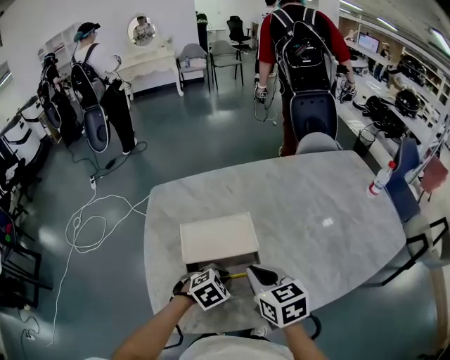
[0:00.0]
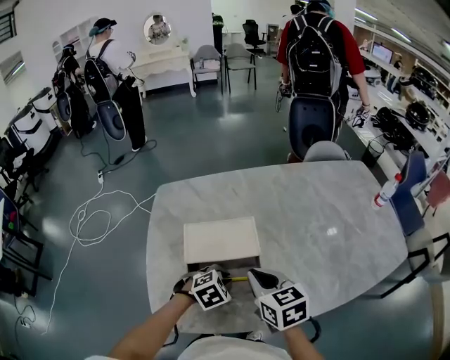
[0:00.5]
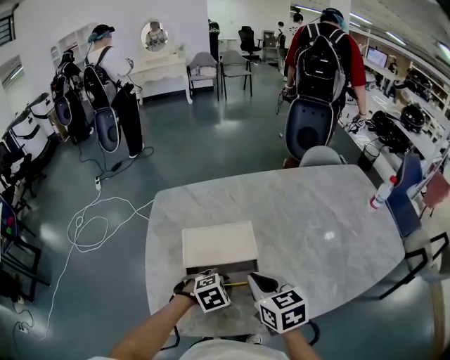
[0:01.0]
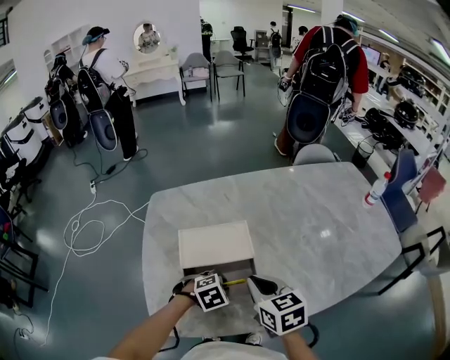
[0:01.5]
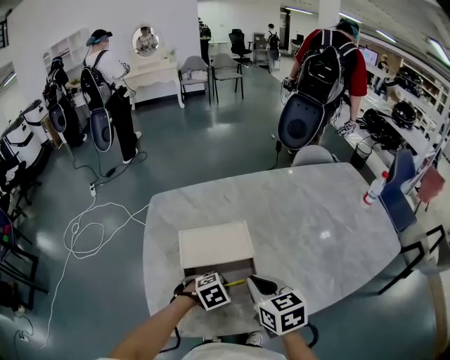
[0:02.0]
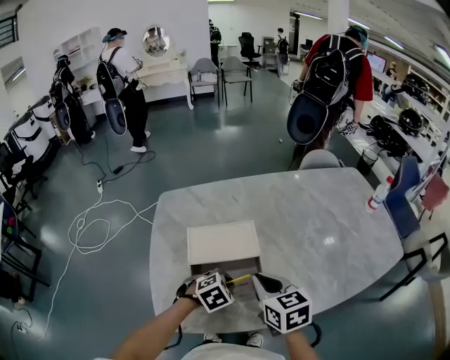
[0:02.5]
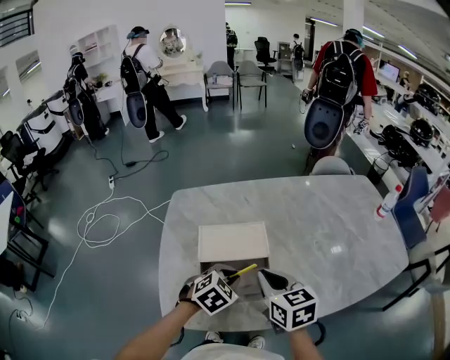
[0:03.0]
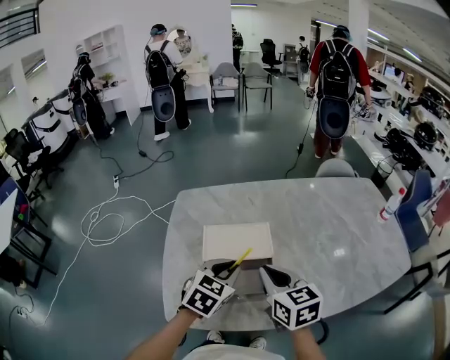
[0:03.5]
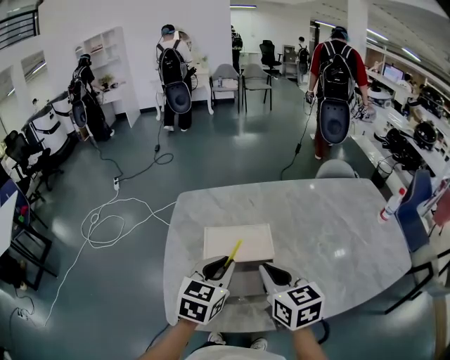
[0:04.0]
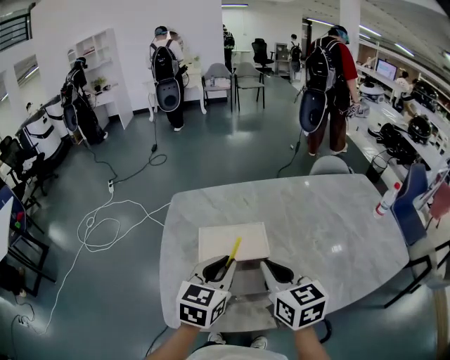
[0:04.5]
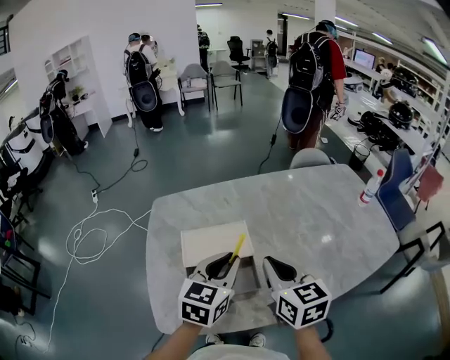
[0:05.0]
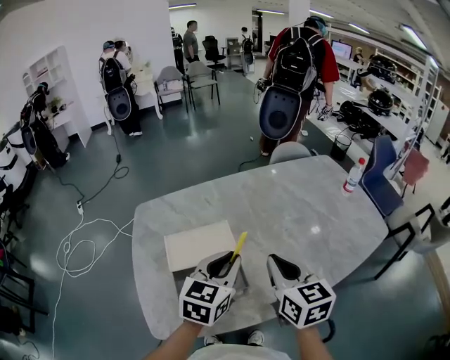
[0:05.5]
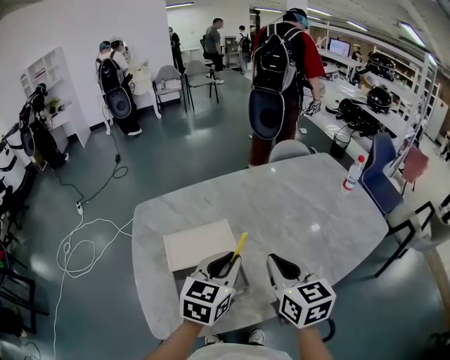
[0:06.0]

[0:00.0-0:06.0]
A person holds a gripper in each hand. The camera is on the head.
0:00.0 to 0:02.0: There are only small adjustments of the grippers.
0:02.0 to 0:04.0: The right gripper goes roughly 5 cm upward, while the left gripper goes about 20 cm upward, and tips its fingers upward by approximately 40 degrees.
0:04.0 to 0:06.0: The grippers both shift to the right by roughly 10 cm.

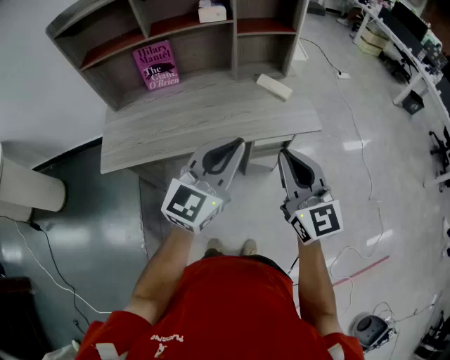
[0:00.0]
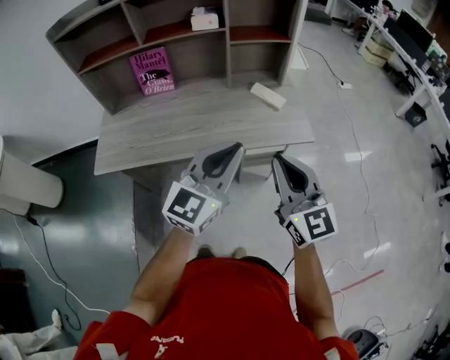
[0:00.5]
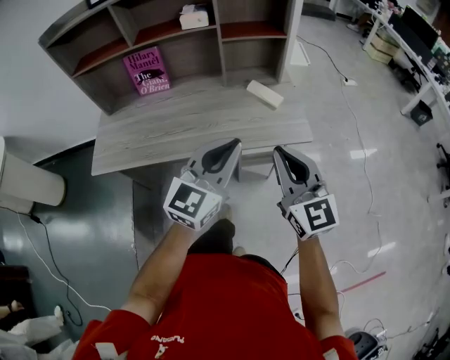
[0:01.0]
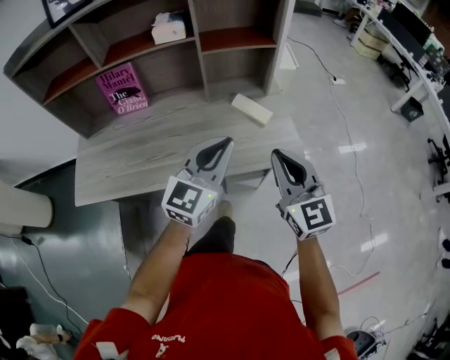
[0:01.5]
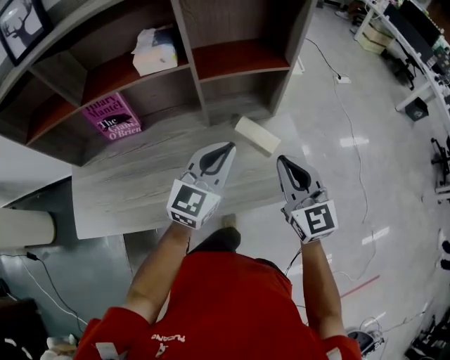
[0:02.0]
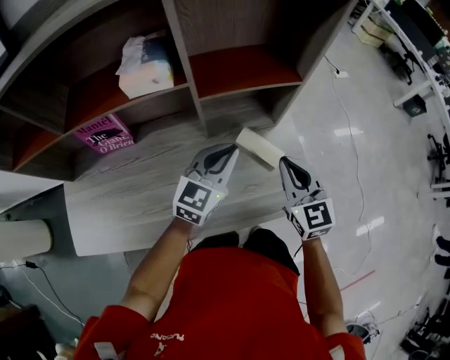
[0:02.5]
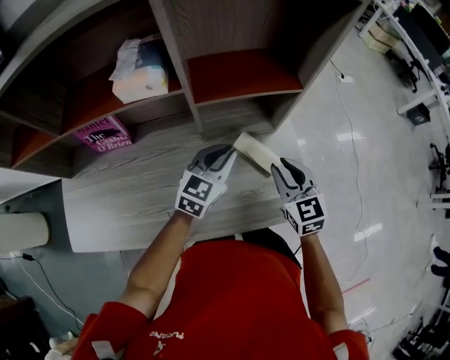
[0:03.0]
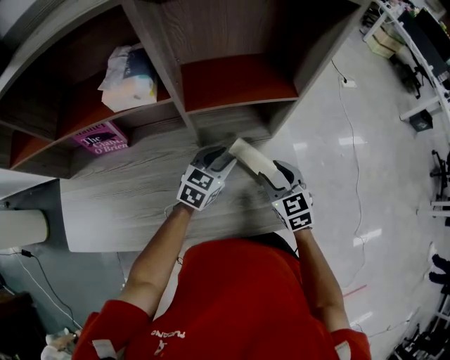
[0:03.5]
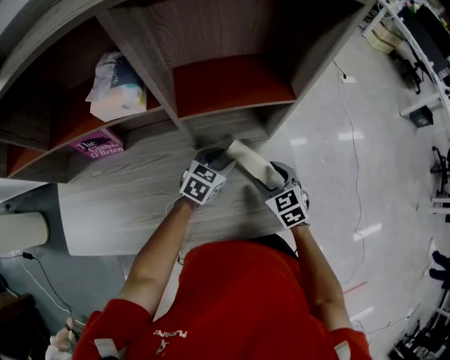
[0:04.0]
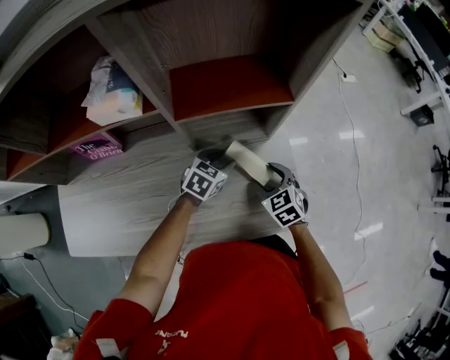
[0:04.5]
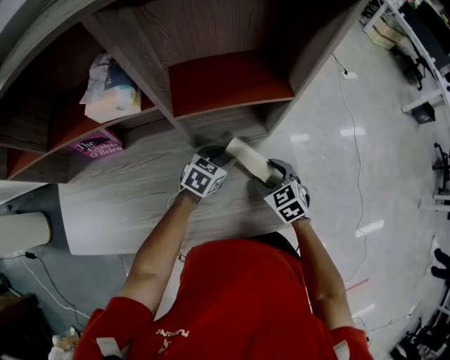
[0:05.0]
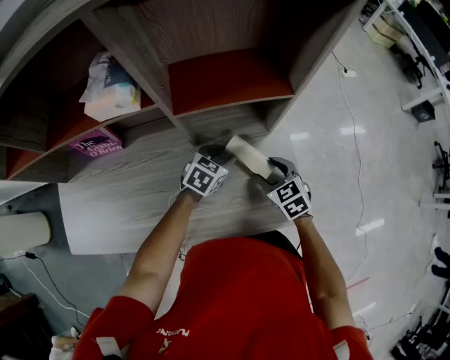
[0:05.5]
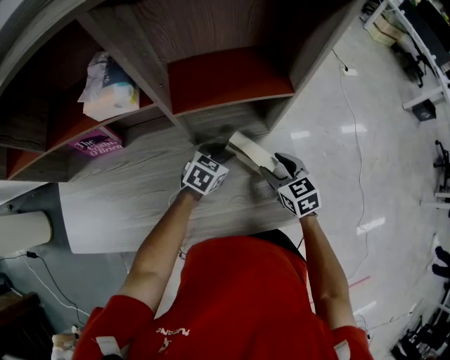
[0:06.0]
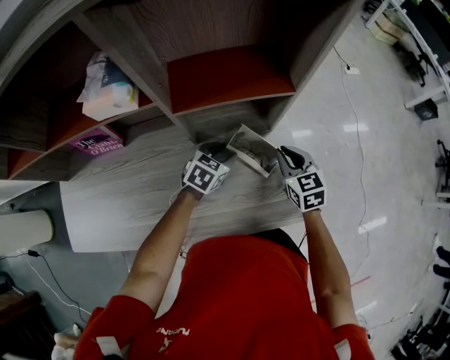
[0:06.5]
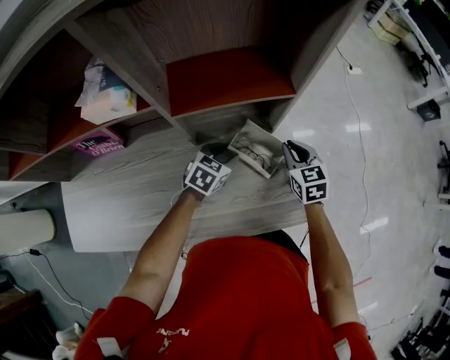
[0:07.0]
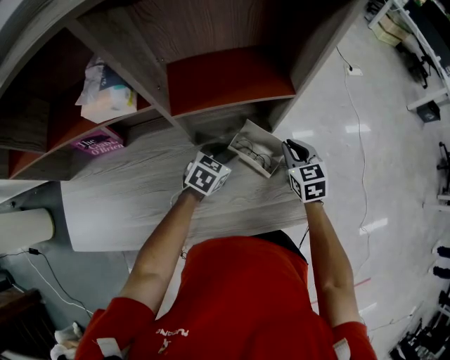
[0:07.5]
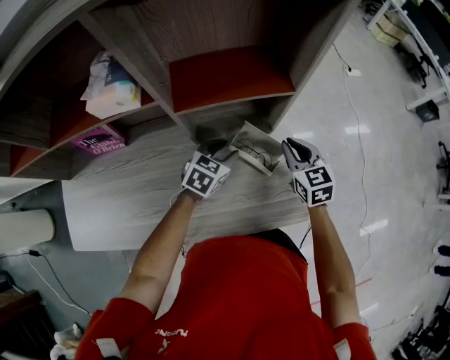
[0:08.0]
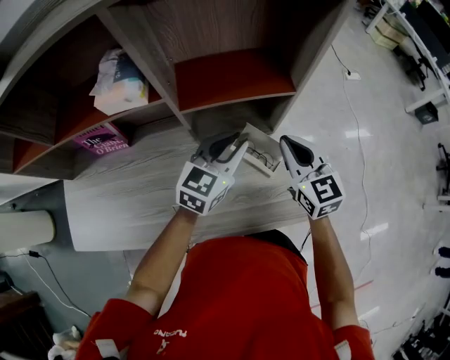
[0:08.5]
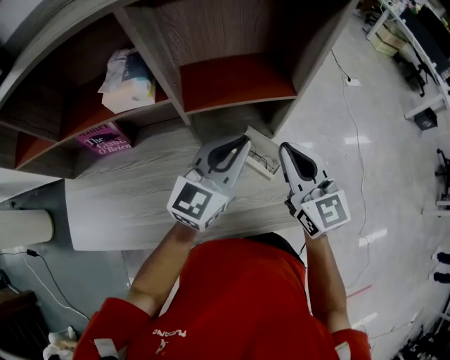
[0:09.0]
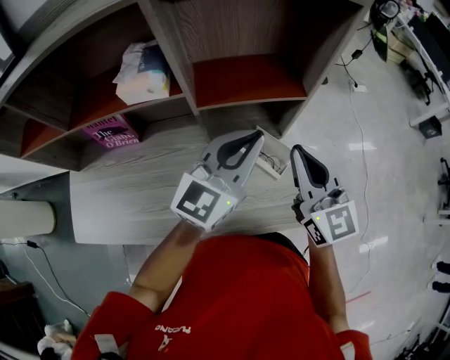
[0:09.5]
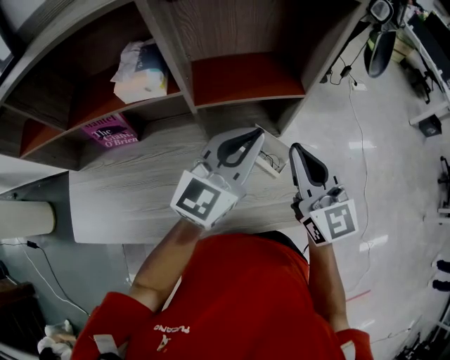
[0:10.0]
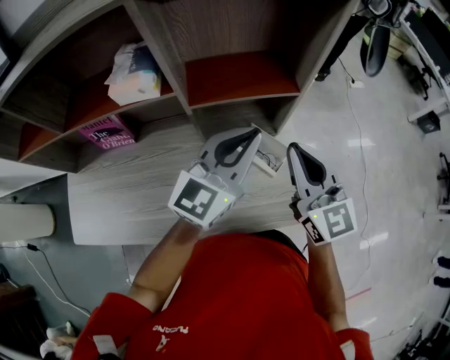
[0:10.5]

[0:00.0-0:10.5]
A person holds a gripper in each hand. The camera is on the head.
0:00.0 to 0:02.0: Both grippers travel together forward, roughly 30 cm.
0:02.0 to 0:04.0: The two grippers go roughly 25 cm downward and forward. The right gripper angles its fingers downward, by approximately 30 degrees, and opens up. The left gripper points its fingers roughly 40 degrees further downward, and opens up.
0:04.0 to 0:06.5: The right gripper goes approximately 5 cm forward, and closes.
0:06.5 to 0:08.5: The two grippers go approximately 15 cm upward. The left gripper changes its angle by about 30 degrees.
0:08.5 to 0:10.5: The right gripper goes approximately 10 cm upward and backward; the left gripper travels upward by about 10 cm.

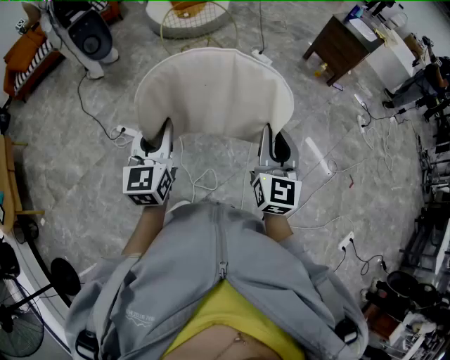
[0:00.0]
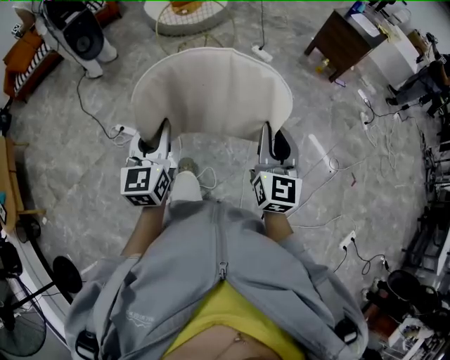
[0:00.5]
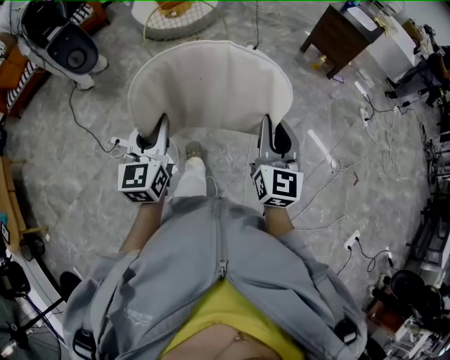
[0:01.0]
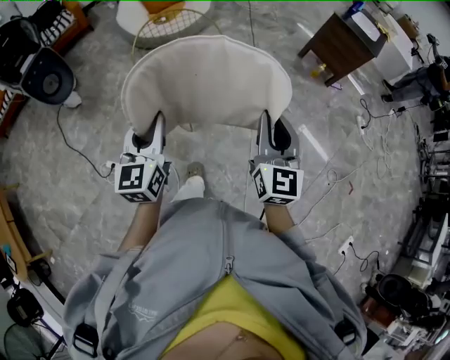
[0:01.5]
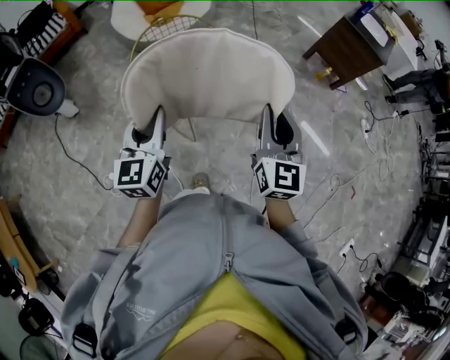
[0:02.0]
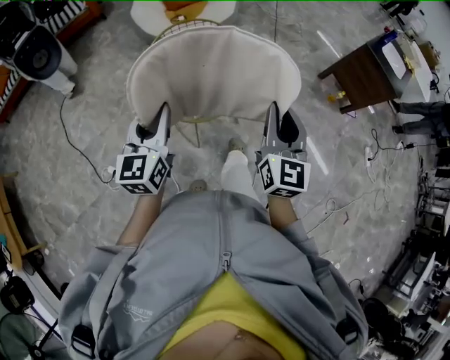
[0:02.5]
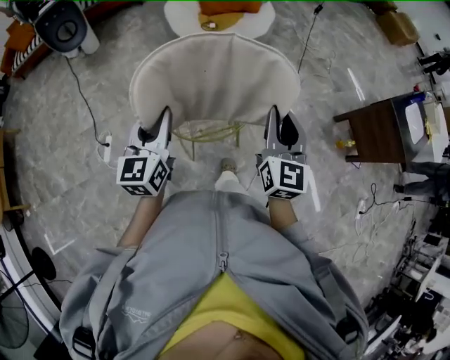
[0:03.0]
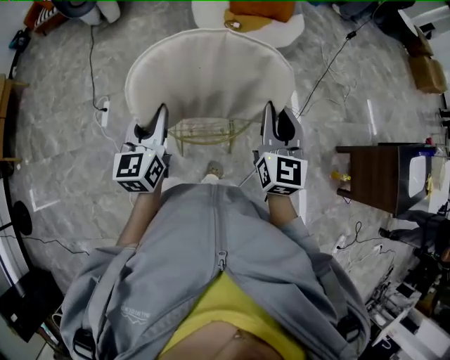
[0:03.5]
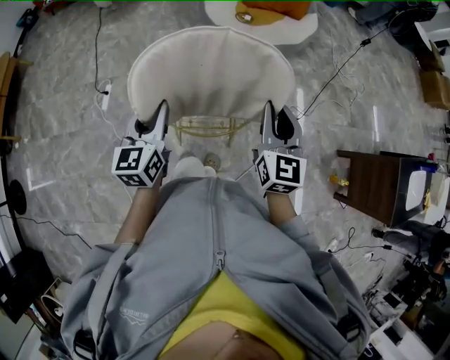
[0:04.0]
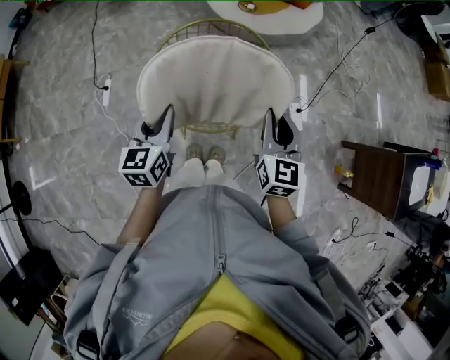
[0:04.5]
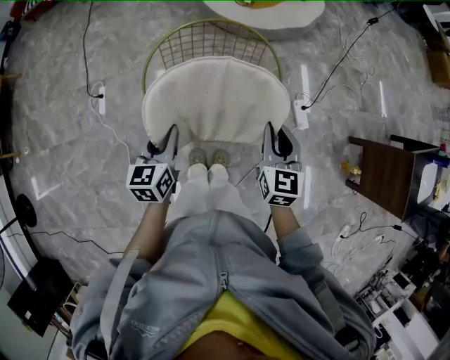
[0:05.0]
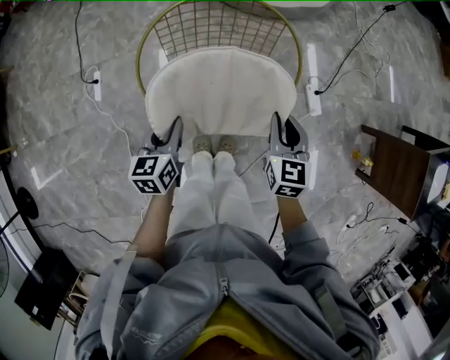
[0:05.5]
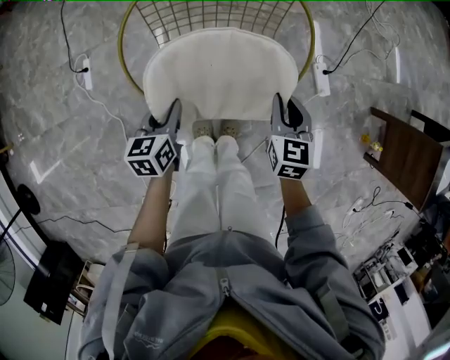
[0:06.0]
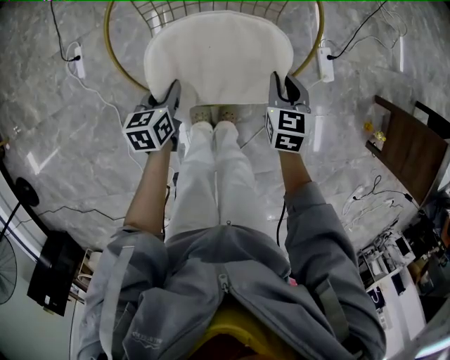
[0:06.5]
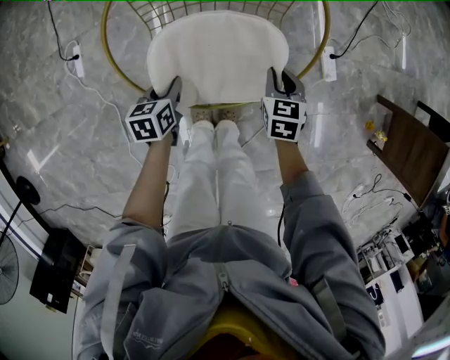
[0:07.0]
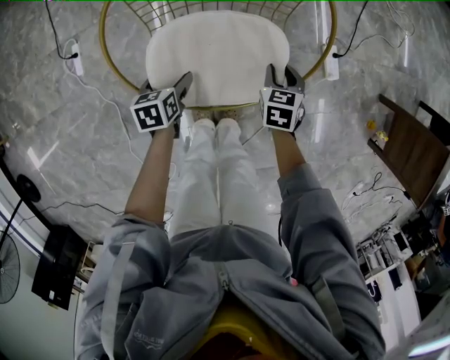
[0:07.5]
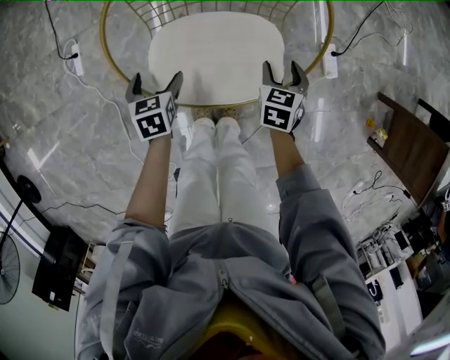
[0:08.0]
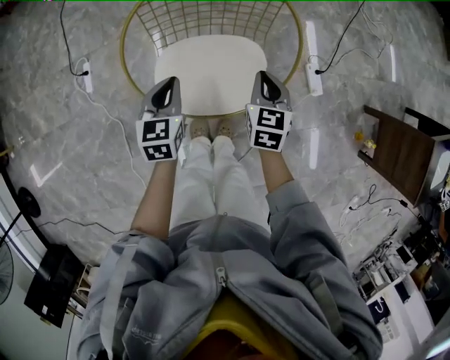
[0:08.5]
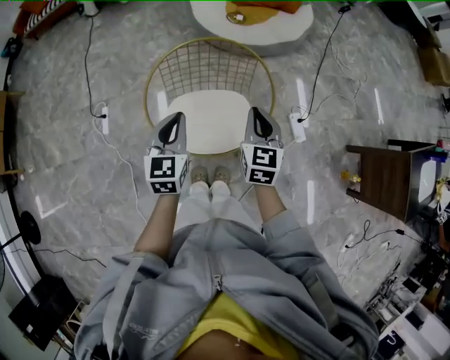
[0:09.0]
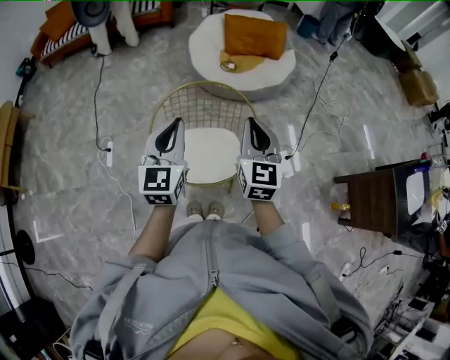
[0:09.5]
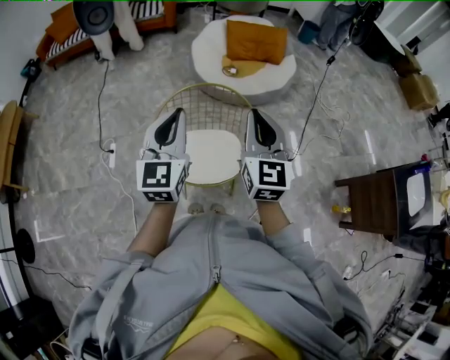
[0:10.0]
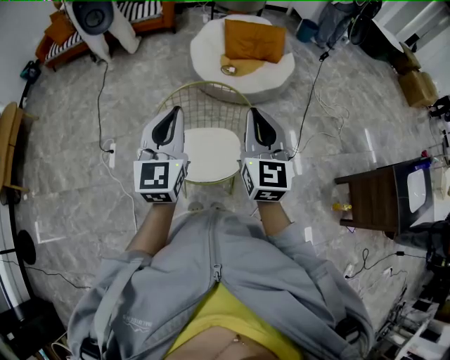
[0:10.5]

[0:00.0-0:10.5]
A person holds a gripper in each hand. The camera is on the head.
0:00.0 to 0:02.0: The pair of grippers is taken forward, some 50 cm.
0:02.0 to 0:04.0: The right gripper ends up some 40 cm from where it was, and changes its angle by roughly 40 degrees. Meanwhile the left gripper shifts by approximately 20 cm, and turns by some 40 degrees.
0:04.0 to 0:06.5: Both grippers travel together downward, some 40 cm. The right gripper tips its fingers downward by about 30 degrees; the left gripper turns by about 40 degrees.
0:06.5 to 0:08.5: The left gripper shifts about 15 cm upward, turns by approximately 20 degrees, and opens, then closes once more. Meanwhile the right gripper travels upward by approximately 10 cm, and opens, then closes again.
0:08.5 to 0:10.5: The grippers both shift upward by approximately 40 cm. The right gripper tips its fingers upward by about 40 degrees. The left gripper tips its fingers upward by some 40 degrees.
